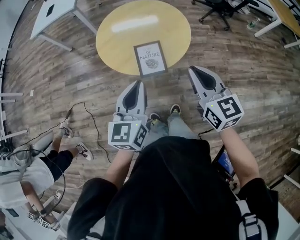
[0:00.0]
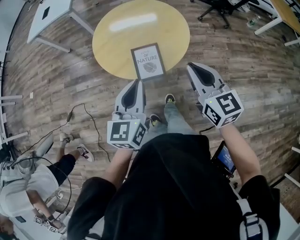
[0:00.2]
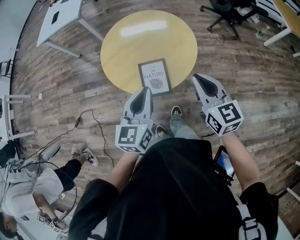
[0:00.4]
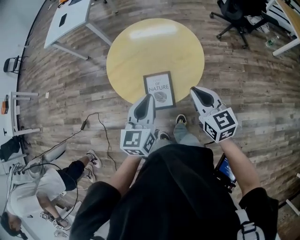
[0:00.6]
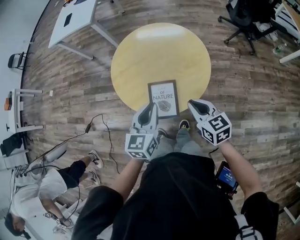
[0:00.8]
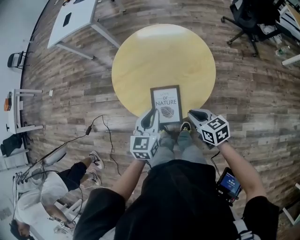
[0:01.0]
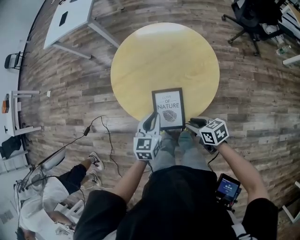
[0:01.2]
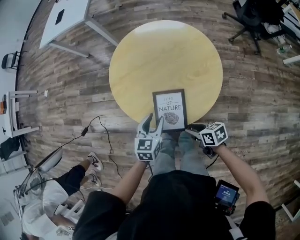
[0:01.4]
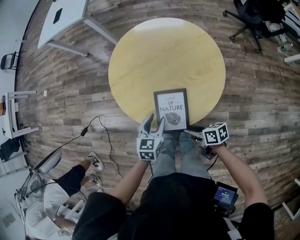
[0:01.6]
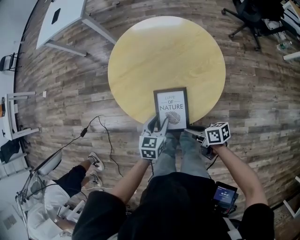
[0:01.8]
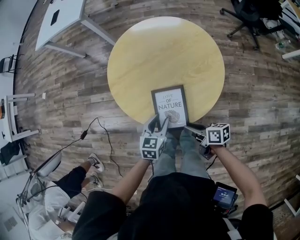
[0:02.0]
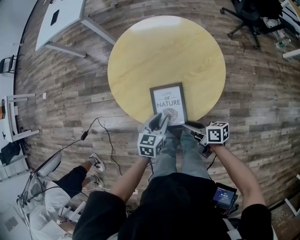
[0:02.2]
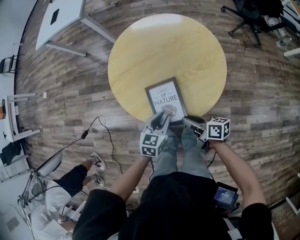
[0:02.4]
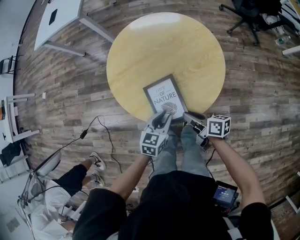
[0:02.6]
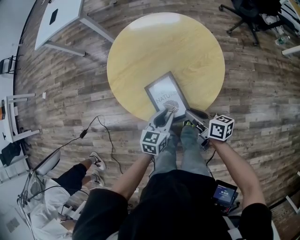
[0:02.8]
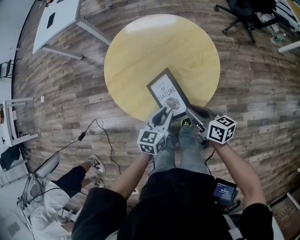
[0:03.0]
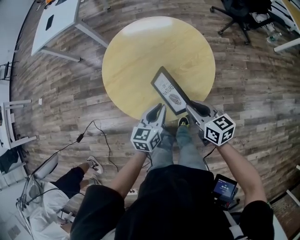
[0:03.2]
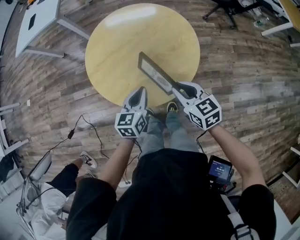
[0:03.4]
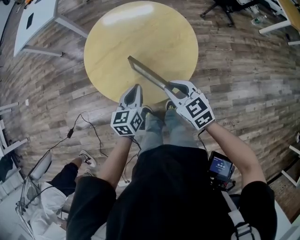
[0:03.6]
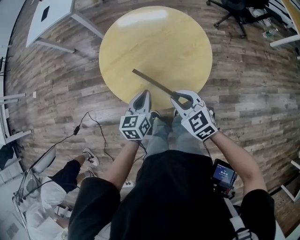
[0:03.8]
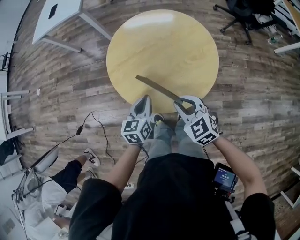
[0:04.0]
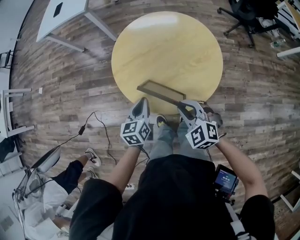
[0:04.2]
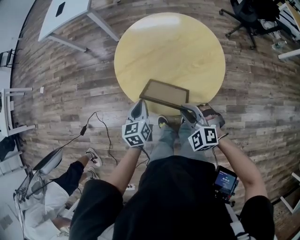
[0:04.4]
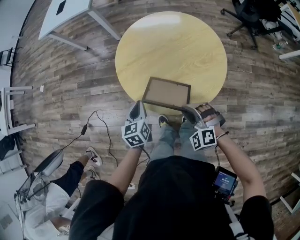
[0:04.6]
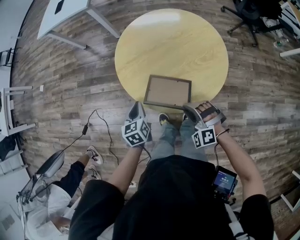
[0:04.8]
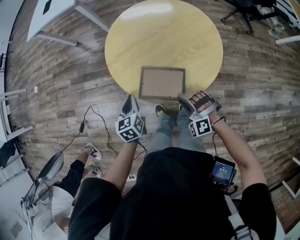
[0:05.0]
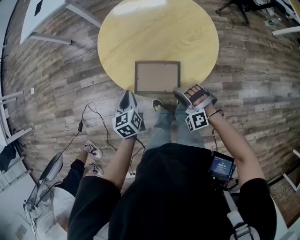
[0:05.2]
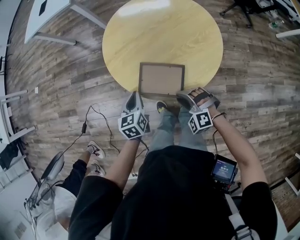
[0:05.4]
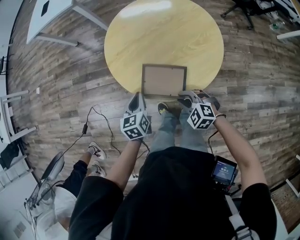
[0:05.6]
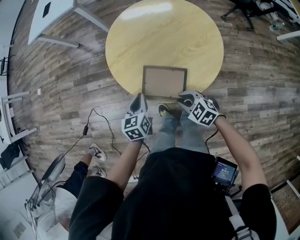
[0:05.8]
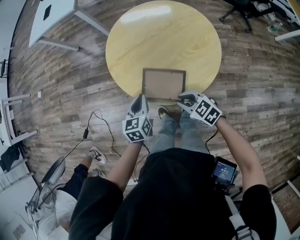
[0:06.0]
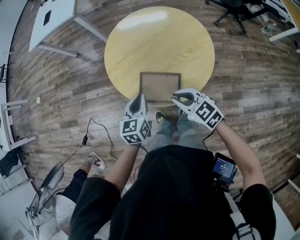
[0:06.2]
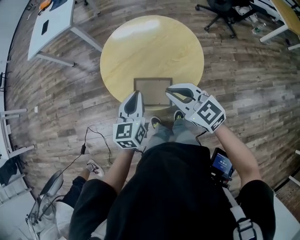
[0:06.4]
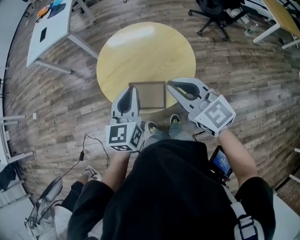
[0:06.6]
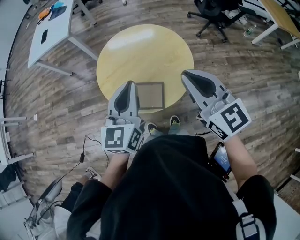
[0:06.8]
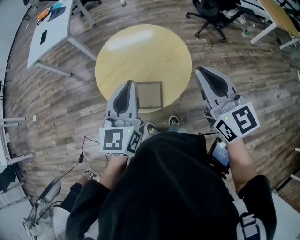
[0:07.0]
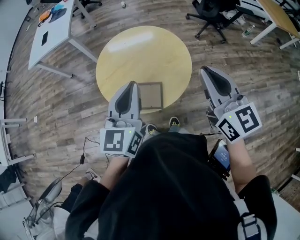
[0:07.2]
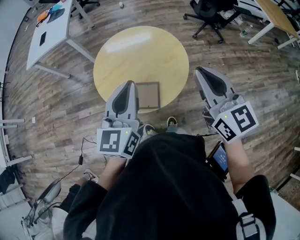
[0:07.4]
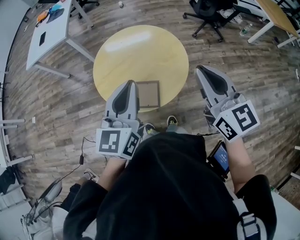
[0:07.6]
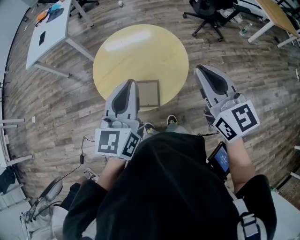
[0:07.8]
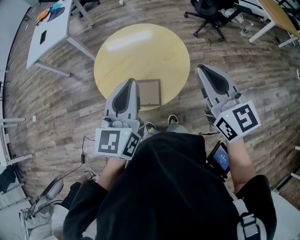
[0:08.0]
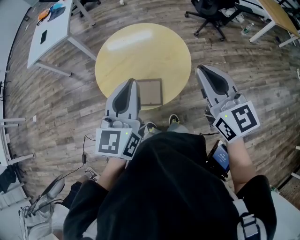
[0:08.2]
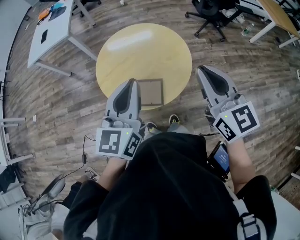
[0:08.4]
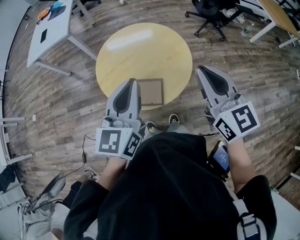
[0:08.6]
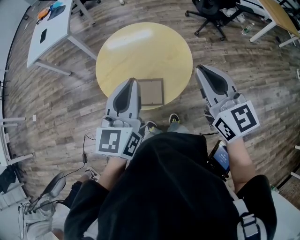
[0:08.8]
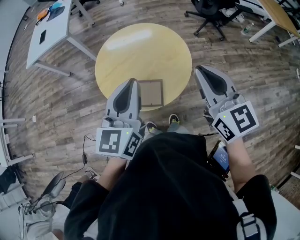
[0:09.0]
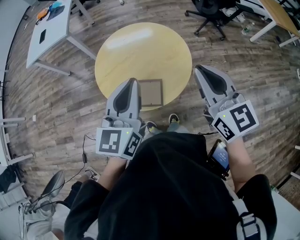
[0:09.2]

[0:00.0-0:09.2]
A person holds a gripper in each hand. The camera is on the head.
0:00.0 to 0:01.6: Both grippers travel together downward, some 30 cm. The left gripper turns by roughly 30 degrees, and opens up; the right gripper rotates some 70 degrees, and opens up.
0:01.6 to 0:03.0: The right gripper travels upward and forward by some 10 cm, and swivels some 30 degrees, while the left gripper goes roughly 5 cm to the right.
0:03.0 to 0:04.6: The left gripper travels to the left by approximately 20 cm, and changes its angle by roughly 30 degrees. Meanwhile the right gripper travels to the left by approximately 10 cm, and twists some 100 degrees counterclockwise, seen from behind.
0:04.6 to 0:06.2: The right gripper is displaced upward by some 5 cm, and rolls clockwise, seen from behind, by about 50 degrees, while the left gripper heads to the right, covering approximately 5 cm.
0:06.2 to 0:07.6: The right gripper travels upward and to the right by approximately 35 cm, and turns by roughly 40 degrees. The left gripper is displaced upward by roughly 30 cm, and changes its angle by about 30 degrees.
0:07.6 to 0:09.2: The grippers move only a little.

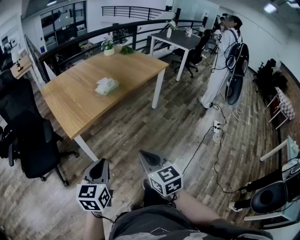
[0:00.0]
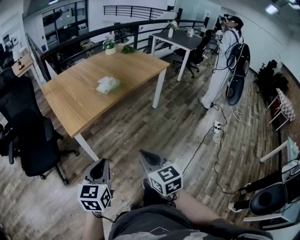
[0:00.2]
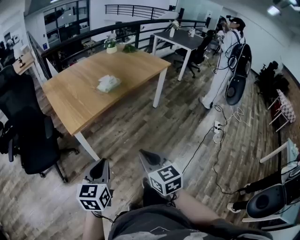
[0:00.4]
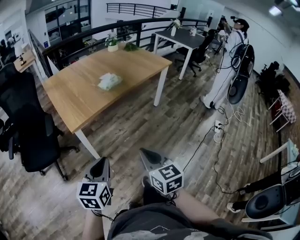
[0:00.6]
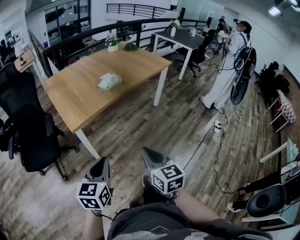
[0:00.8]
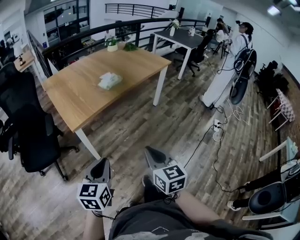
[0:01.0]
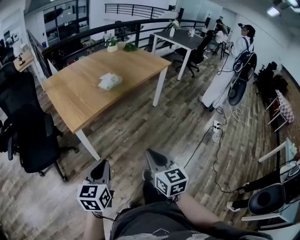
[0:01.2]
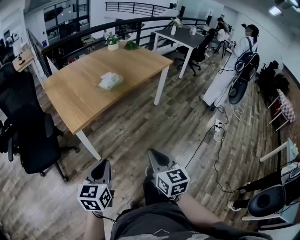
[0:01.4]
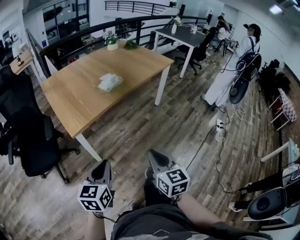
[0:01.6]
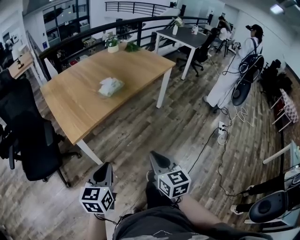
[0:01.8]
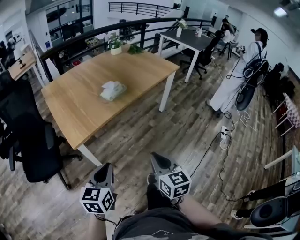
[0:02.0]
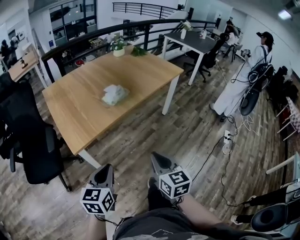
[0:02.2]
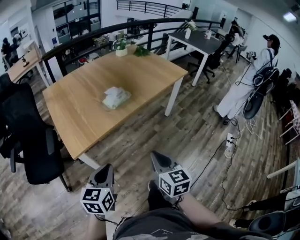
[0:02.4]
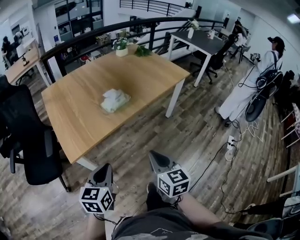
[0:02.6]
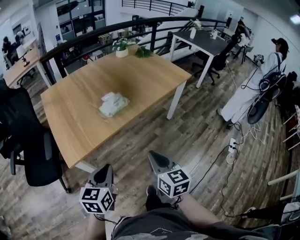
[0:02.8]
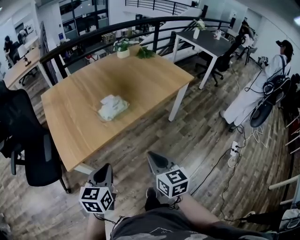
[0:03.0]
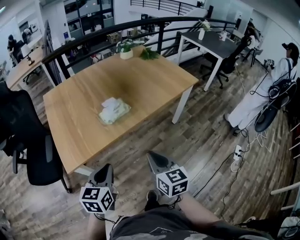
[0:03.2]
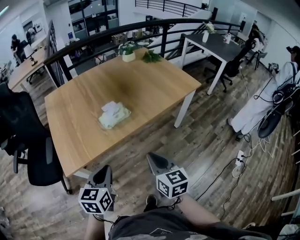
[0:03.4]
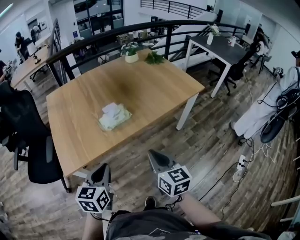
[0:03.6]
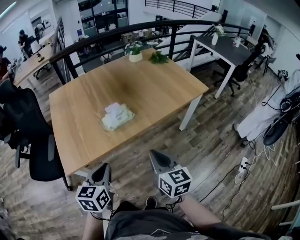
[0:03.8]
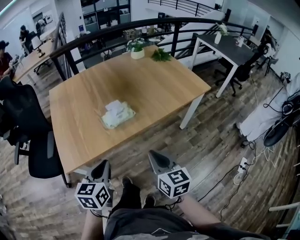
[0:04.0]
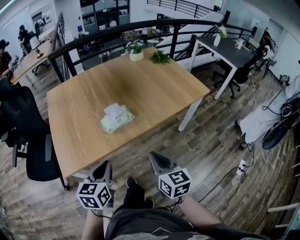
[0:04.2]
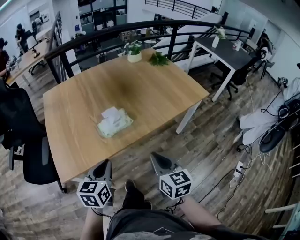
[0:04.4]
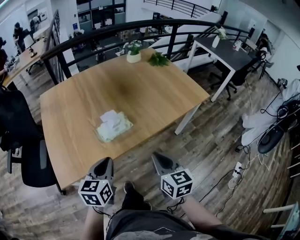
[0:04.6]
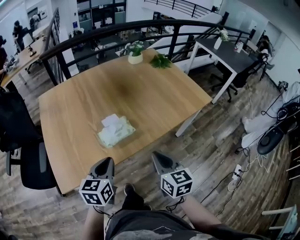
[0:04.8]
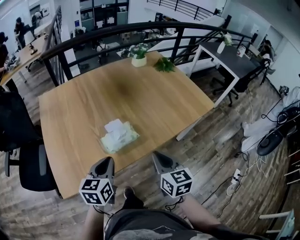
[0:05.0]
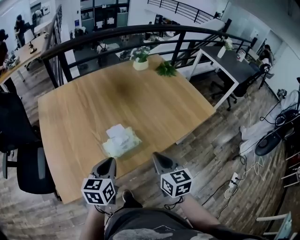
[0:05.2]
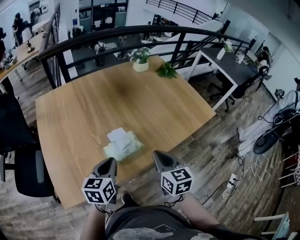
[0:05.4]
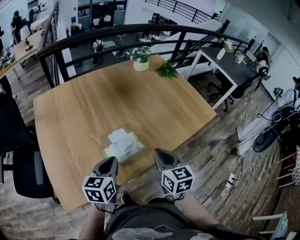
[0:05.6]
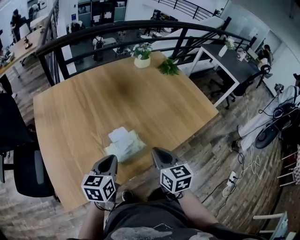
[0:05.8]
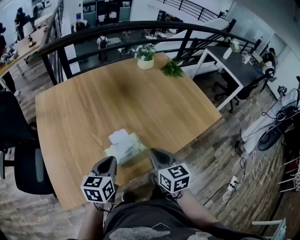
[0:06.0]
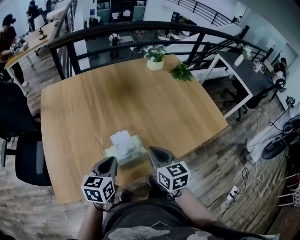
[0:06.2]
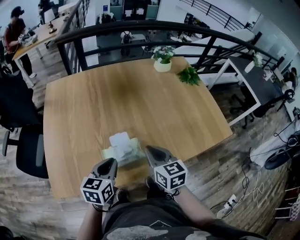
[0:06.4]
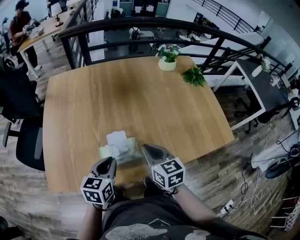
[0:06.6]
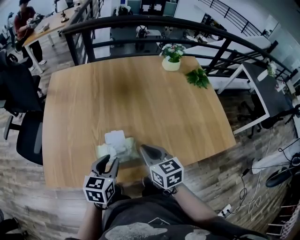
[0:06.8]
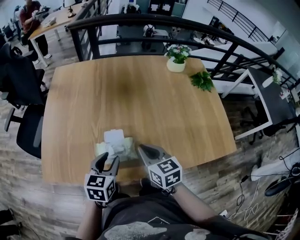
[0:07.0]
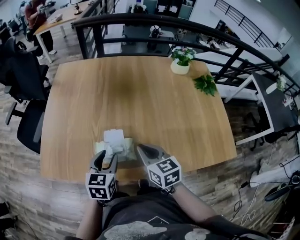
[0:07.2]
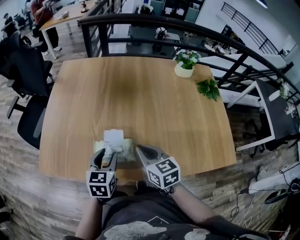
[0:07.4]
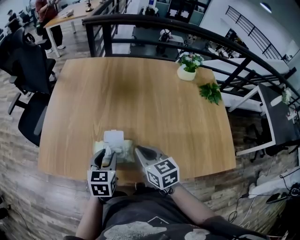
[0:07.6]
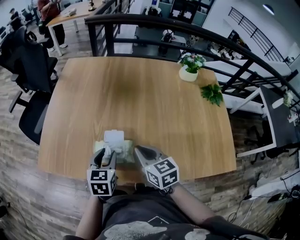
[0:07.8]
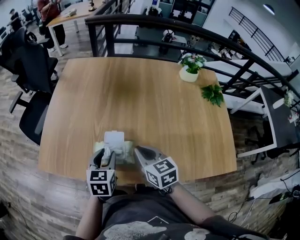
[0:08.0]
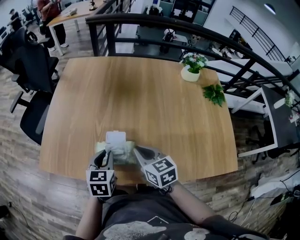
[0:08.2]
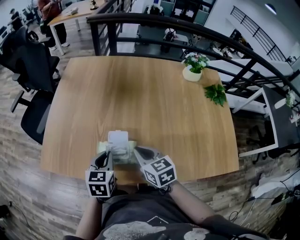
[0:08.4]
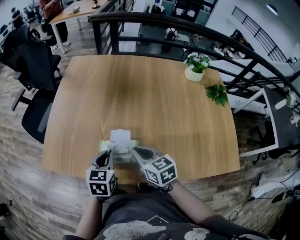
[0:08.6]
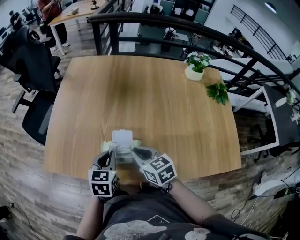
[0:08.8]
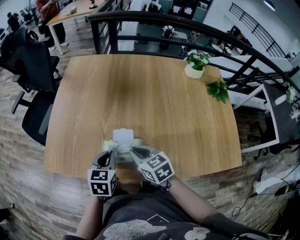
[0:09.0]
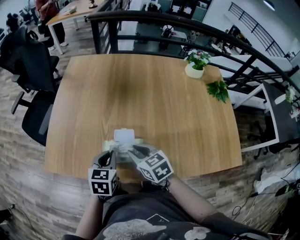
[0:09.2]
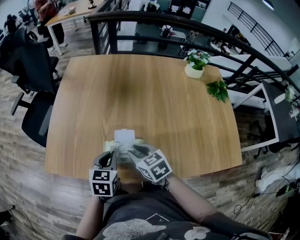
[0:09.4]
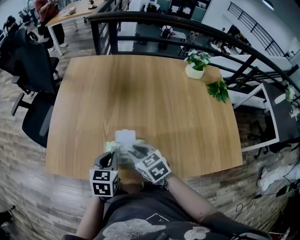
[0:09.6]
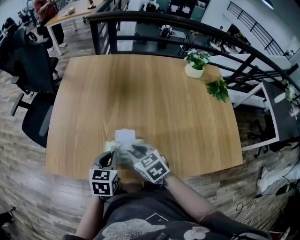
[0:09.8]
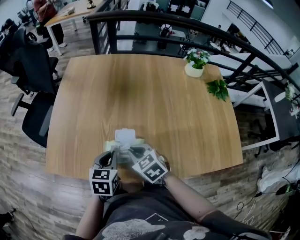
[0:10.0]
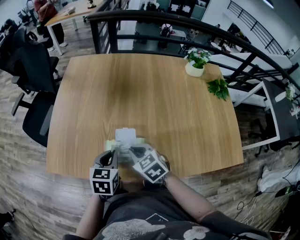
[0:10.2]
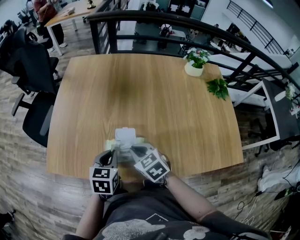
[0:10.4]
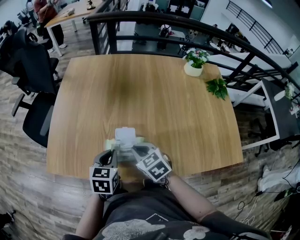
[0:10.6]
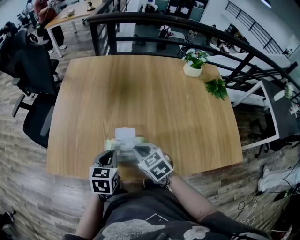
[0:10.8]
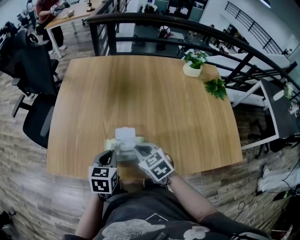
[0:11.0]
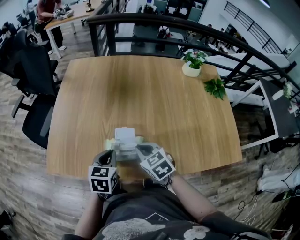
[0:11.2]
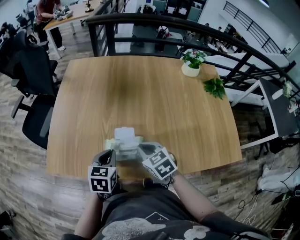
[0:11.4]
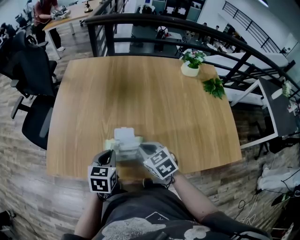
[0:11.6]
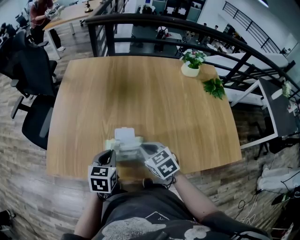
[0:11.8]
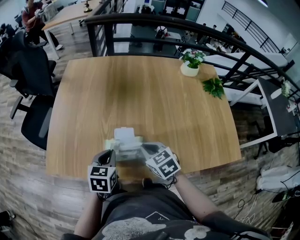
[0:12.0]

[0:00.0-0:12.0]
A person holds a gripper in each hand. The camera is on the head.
0:00.0 to 0:01.6: There are only small adjustments of the grippers.
0:01.6 to 0:03.0: The two grippers go approximately 25 cm forward.
0:03.0 to 0:04.4: The left gripper shifts some 15 cm forward. Meanwhile the right gripper is displaced forward and to the right by approximately 15 cm.
0:04.4 to 0:06.0: Both grippers travel together forward, some 20 cm.
0:06.0 to 0:07.6: The left gripper moves approximately 10 cm, turns by approximately 40 degrees, and opens up, while the right gripper changes place by approximately 10 cm, and rotates about 40 degrees.
0:07.6 to 0:09.0: The right gripper shifts some 5 cm to the left; the left gripper closes its fingers.
0:09.0 to 0:10.4: There are only small adjustments of the grippers.
0:10.4 to 0:12.0: The right gripper moves to the right, some 5 cm.

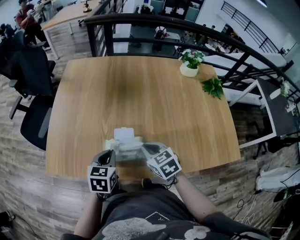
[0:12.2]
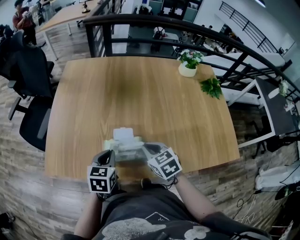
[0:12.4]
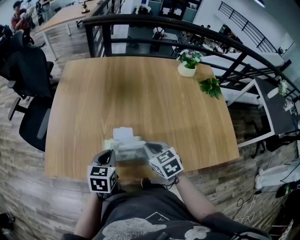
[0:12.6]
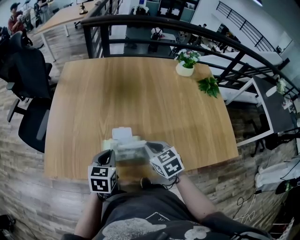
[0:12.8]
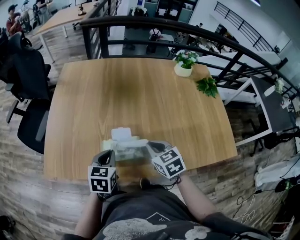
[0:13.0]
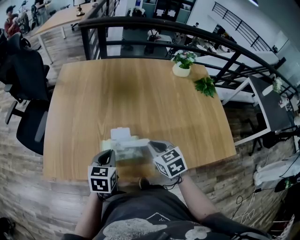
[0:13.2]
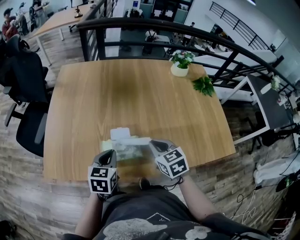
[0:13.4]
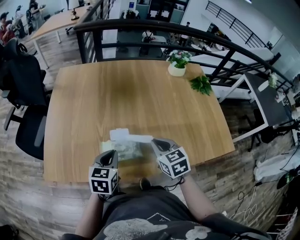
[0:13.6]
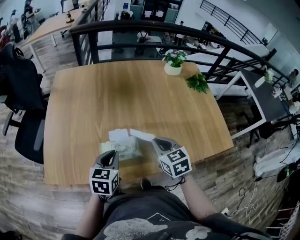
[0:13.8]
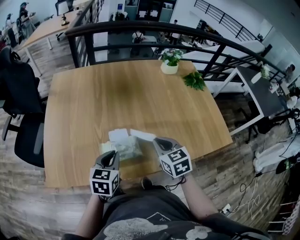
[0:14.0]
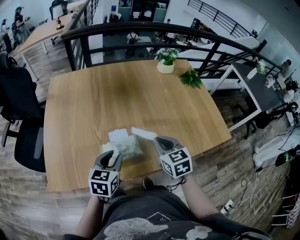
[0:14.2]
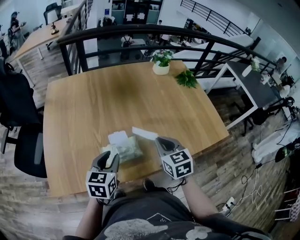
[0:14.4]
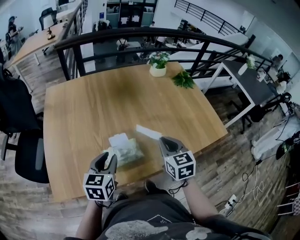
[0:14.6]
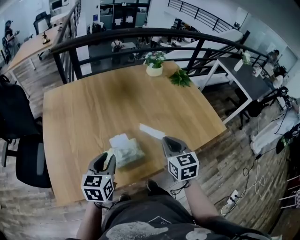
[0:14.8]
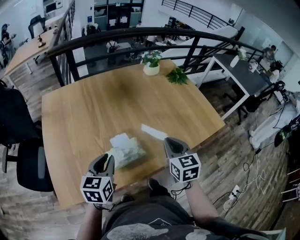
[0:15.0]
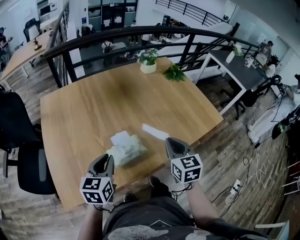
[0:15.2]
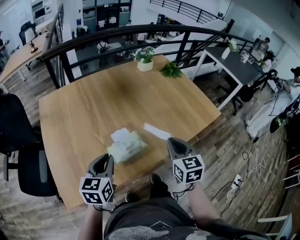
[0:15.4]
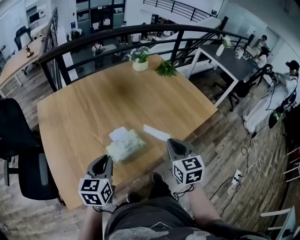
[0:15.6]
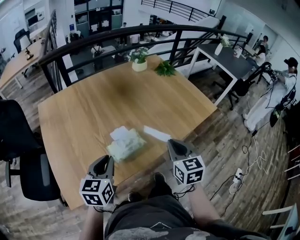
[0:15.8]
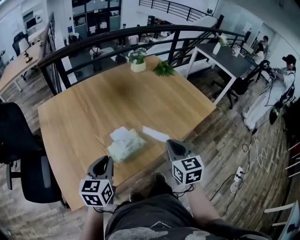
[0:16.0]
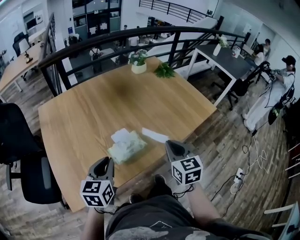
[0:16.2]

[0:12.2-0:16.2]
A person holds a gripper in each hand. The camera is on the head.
0:12.2 to 0:13.6: The right gripper shifts roughly 5 cm to the right.
0:13.6 to 0:14.8: The two grippers go some 5 cm upward. The left gripper opens. Meanwhile the right gripper rotates approximately 30 degrees.
0:14.8 to 0:16.2: The right gripper heads backward, covering about 10 cm; the left gripper moves backward, roughly 5 cm.
